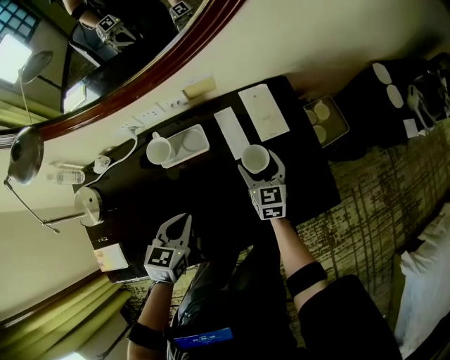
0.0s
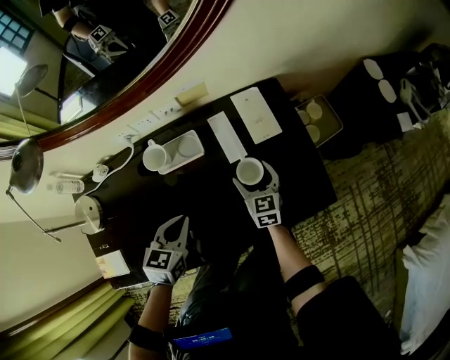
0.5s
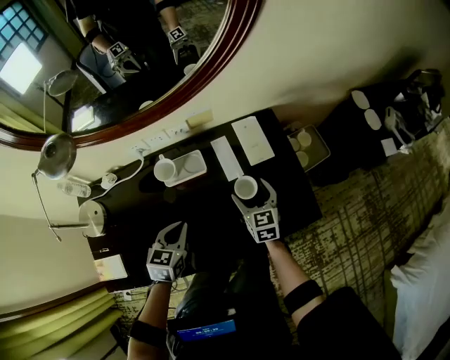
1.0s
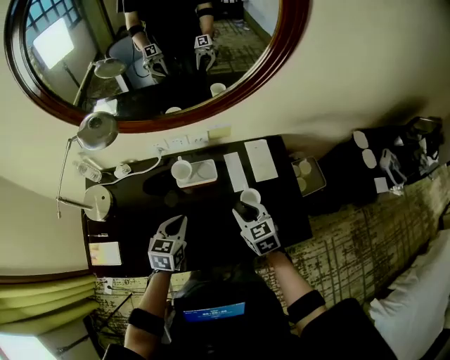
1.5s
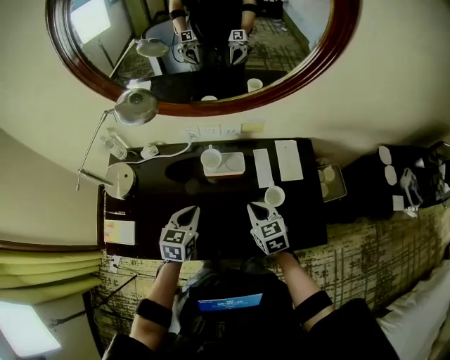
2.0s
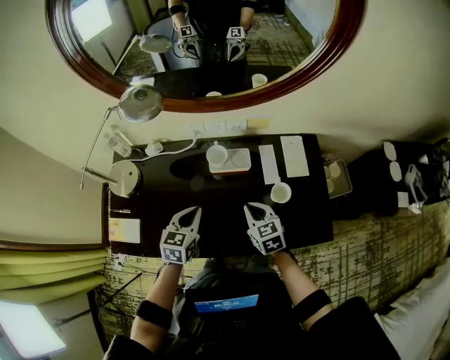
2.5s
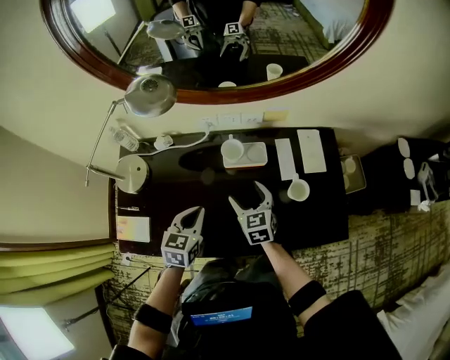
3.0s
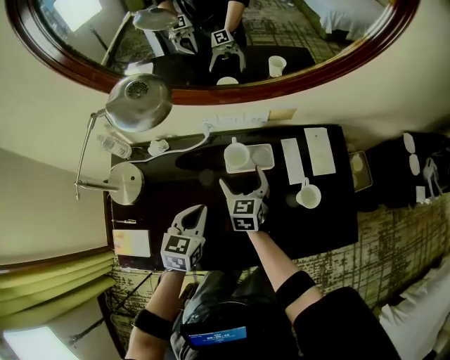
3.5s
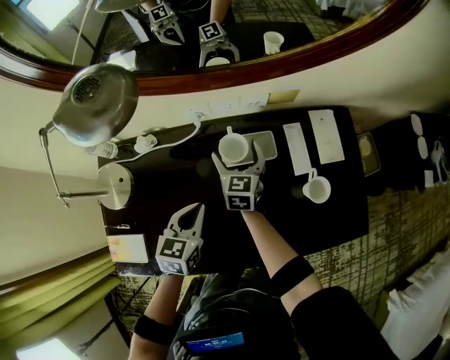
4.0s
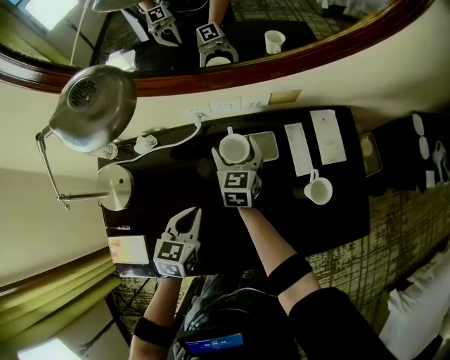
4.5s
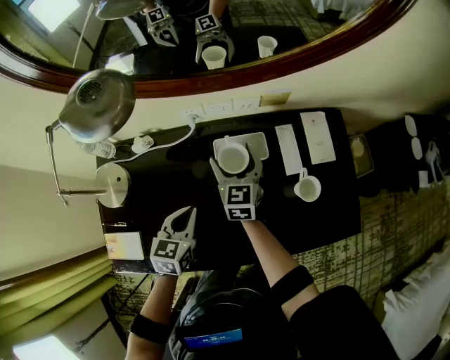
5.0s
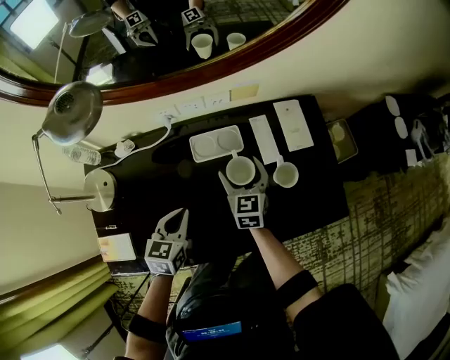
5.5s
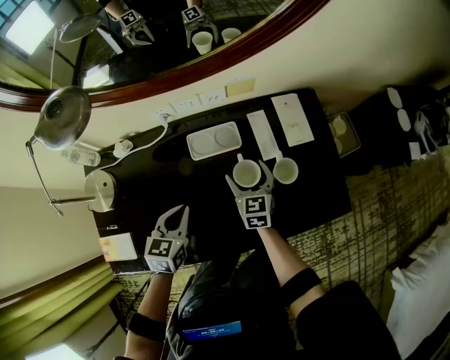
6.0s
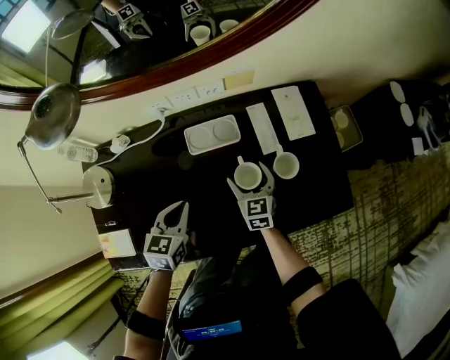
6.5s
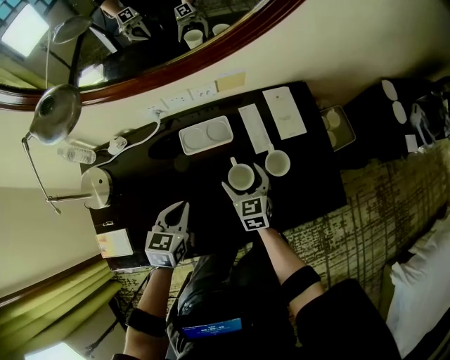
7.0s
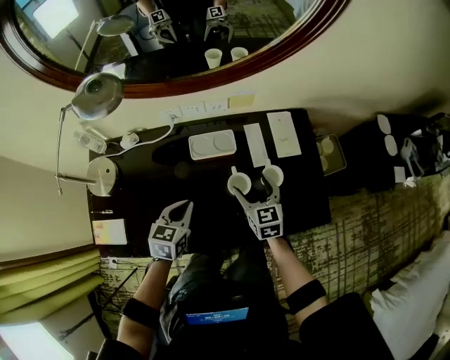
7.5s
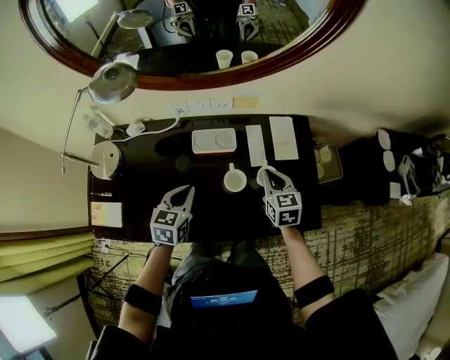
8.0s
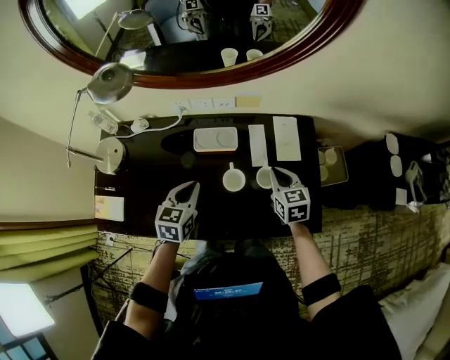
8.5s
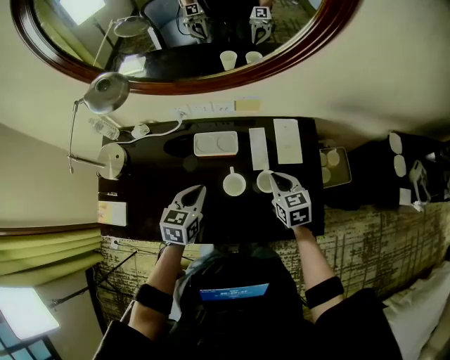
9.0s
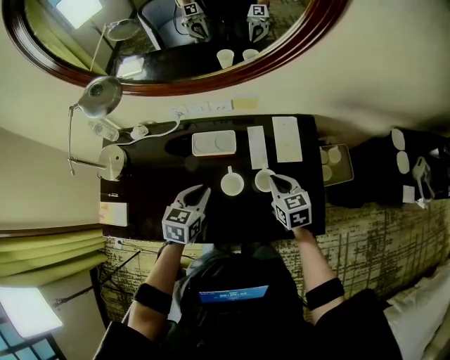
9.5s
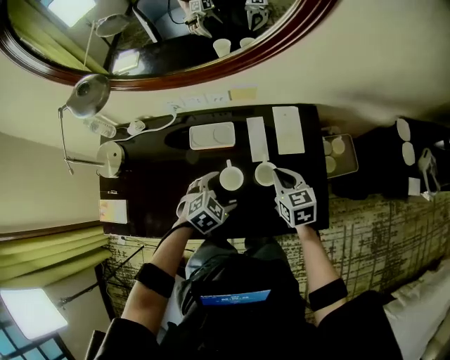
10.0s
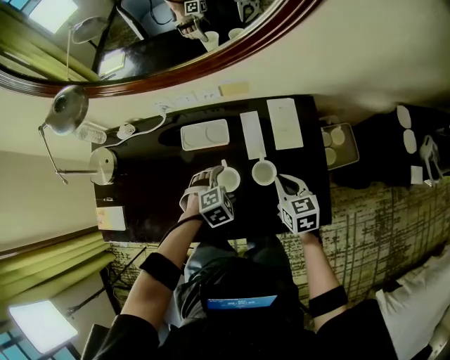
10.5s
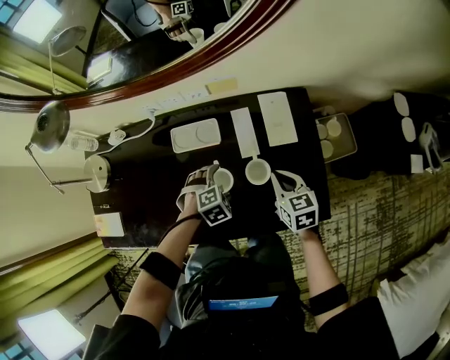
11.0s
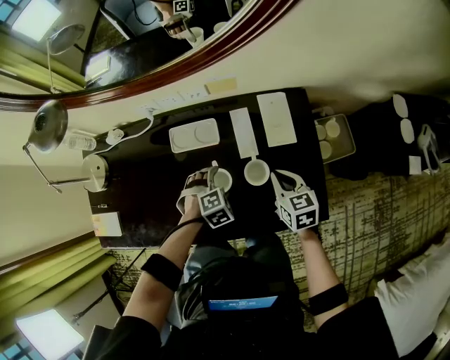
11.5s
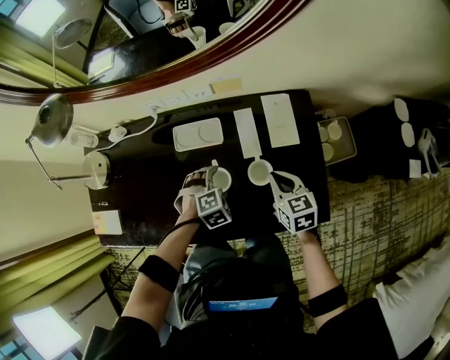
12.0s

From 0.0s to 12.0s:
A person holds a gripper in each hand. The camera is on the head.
From 0.0s to 2.0s: The right gripper heads to the left, backward and upward, covering about 20 cm, swivels approximately 30 degrees, and closes. Meanwhile the left gripper is displaced to the left and upward by some 10 cm.
From 2.0s to 4.0s: The right gripper shifts approximately 25 cm forward, to the left and downward, swivels about 30 degrees, and opens up. Meanwhile the left gripper heads downward, to the left and forward, covering about 10 cm.
From 4.0s to 6.0s: The right gripper goes approximately 15 cm to the right and backward. The left gripper moves to the right, roughly 5 cm.
From 6.0s to 8.0s: The left gripper is displaced to the right by about 5 cm; the right gripper shifts approximately 15 cm to the right and upward, and closes its fingers.
From 8.0s to 10.0s: The right gripper ends up approximately 5 cm from where it was; the left gripper travels to the right and downward by roughly 15 cm, rotates about 40 degrees, and opens up.
From 10.0s to 12.0s: The left gripper goes approximately 10 cm downward, and turns by about 30 degrees.

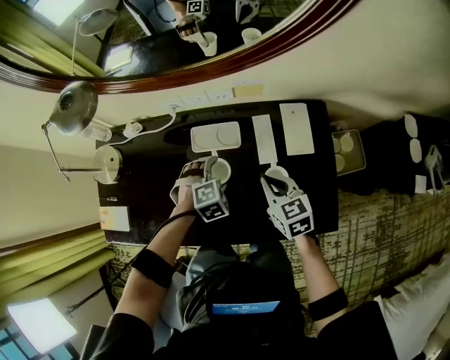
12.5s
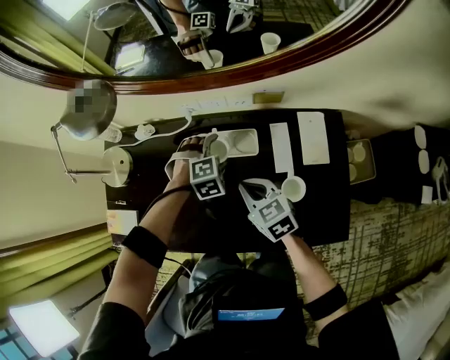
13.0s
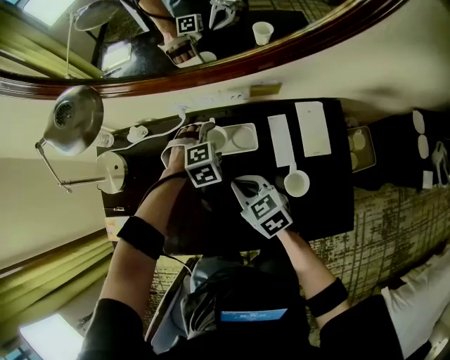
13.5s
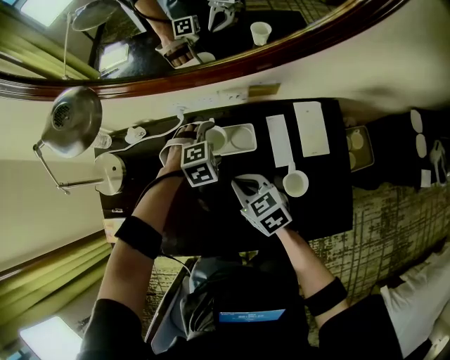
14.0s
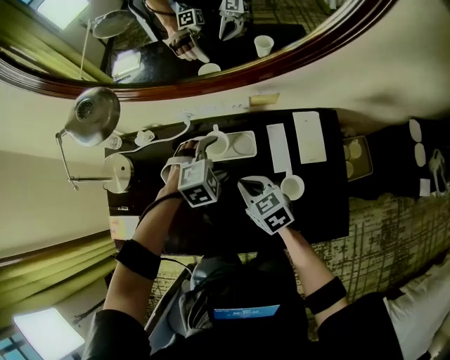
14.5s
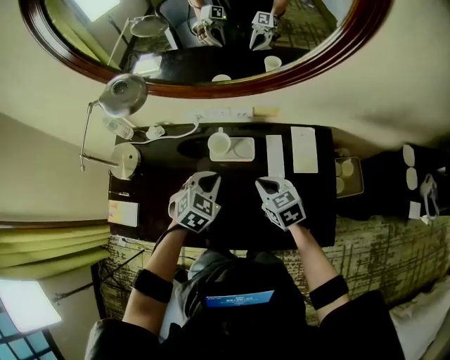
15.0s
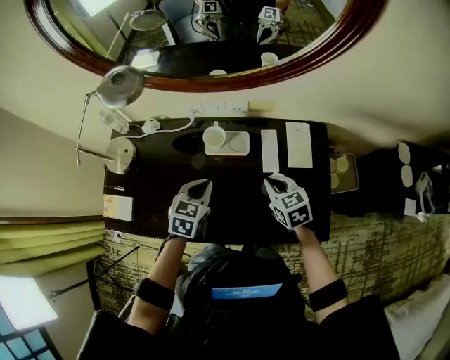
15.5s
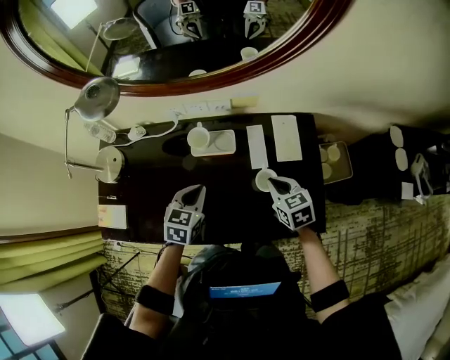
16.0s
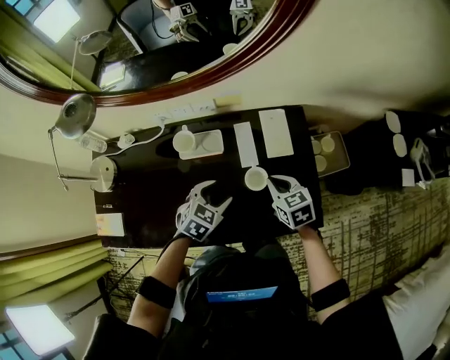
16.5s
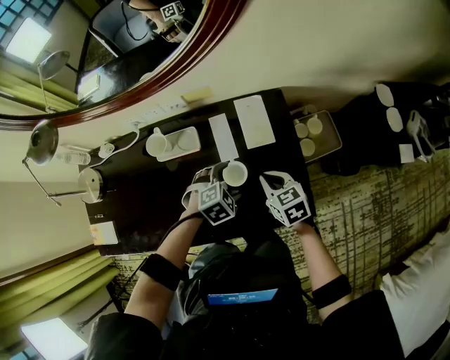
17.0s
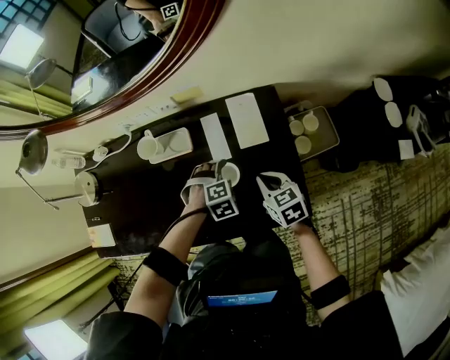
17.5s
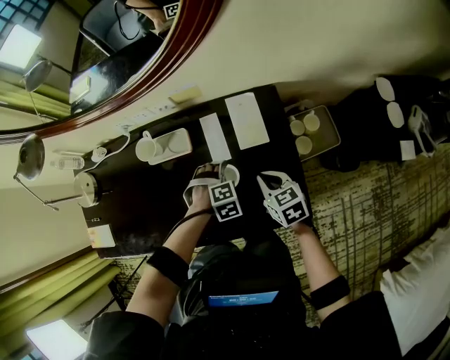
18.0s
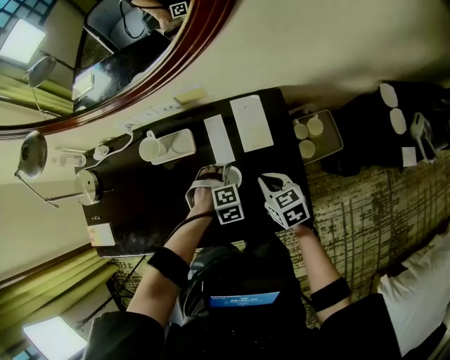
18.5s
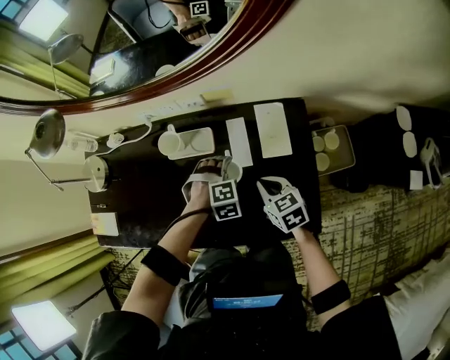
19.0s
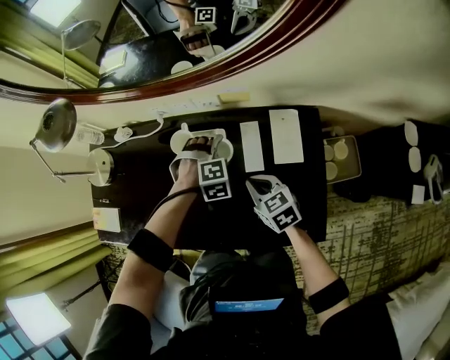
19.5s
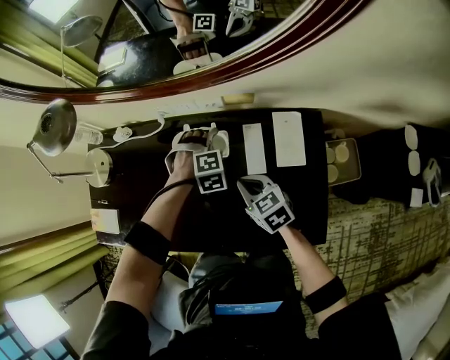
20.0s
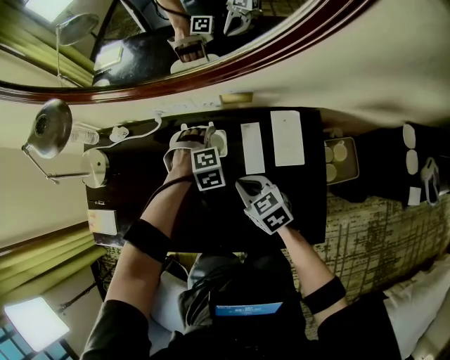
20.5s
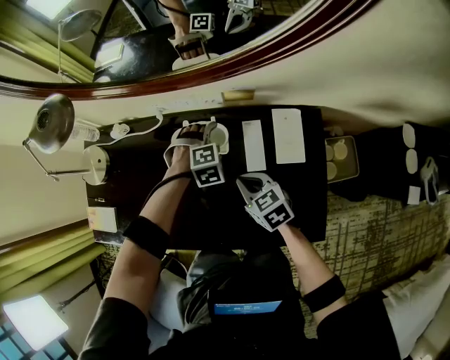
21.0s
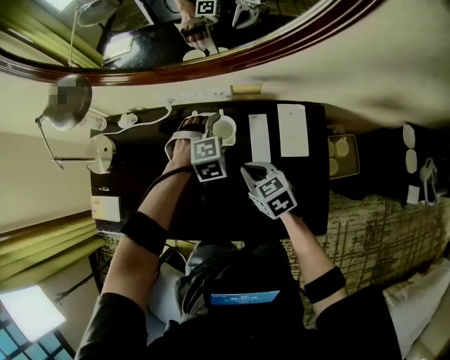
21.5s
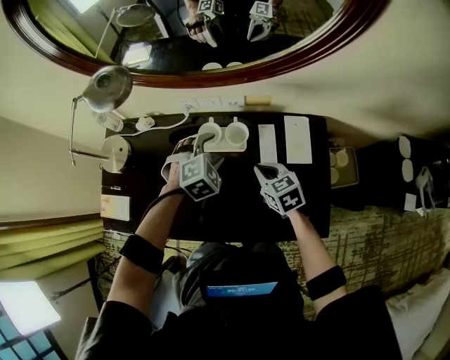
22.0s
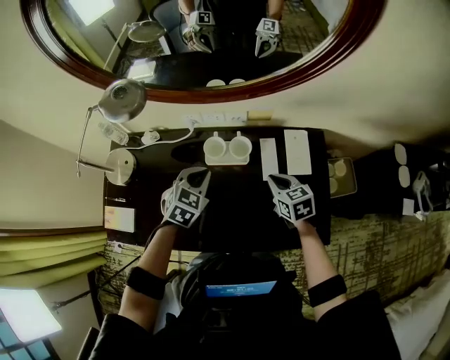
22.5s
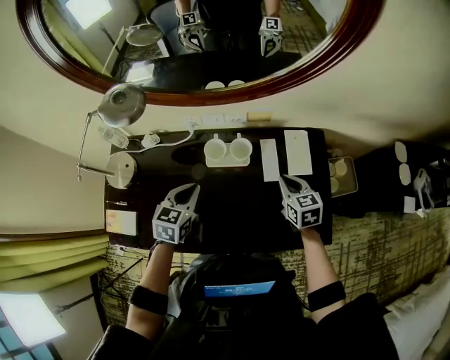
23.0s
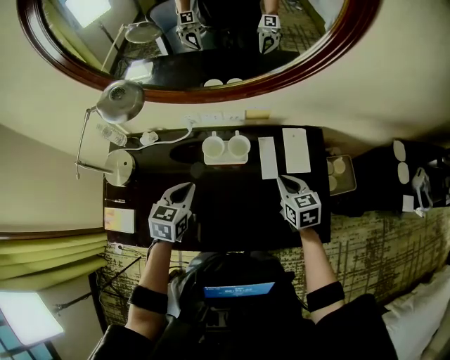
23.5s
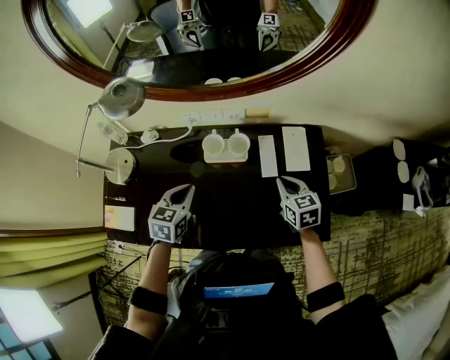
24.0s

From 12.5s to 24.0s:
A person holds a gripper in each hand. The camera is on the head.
From 12.5s to 14.5s: The left gripper heads forward, covering approximately 5 cm, while the right gripper heads to the left, covering about 10 cm.
From 14.5s to 16.5s: The right gripper travels to the right by some 20 cm. Meanwhile the left gripper shifts roughly 15 cm backward and to the right, turns by approximately 40 degrees, and closes up.
From 16.5s to 18.5s: The left gripper moves downward, some 15 cm, and rolls clockwise, seen from behind, by about 40 degrees; the right gripper shifts by approximately 10 cm.
From 18.5s to 20.0s: The right gripper changes place by roughly 20 cm. The left gripper ends up roughly 20 cm from where it was.
From 20.0s to 22.0s: The left gripper moves upward and to the left, some 15 cm, and swivels some 30 degrees.
From 22.0s to 24.0s: The right gripper shifts about 5 cm to the right. The left gripper moves to the left and backward, roughly 15 cm, rolls counterclockwise, seen from behind, by roughly 50 degrees, and closes up.

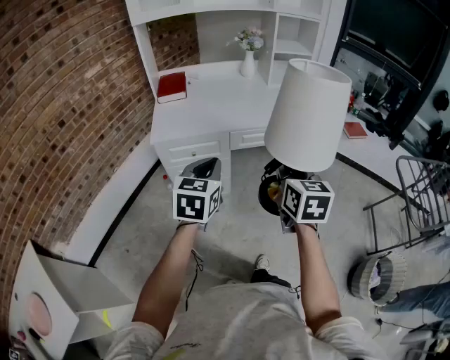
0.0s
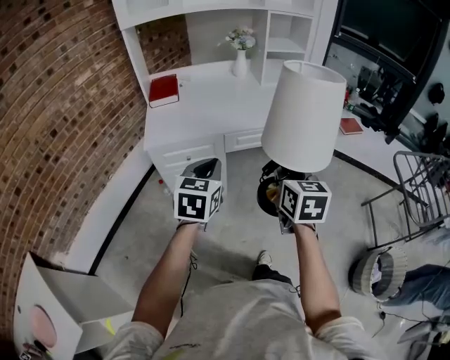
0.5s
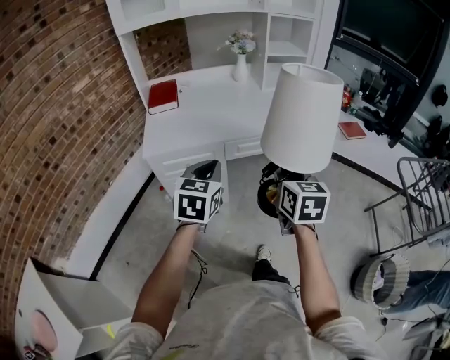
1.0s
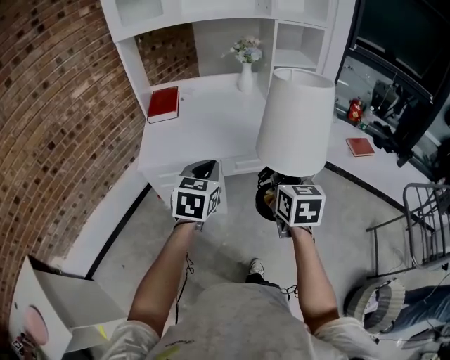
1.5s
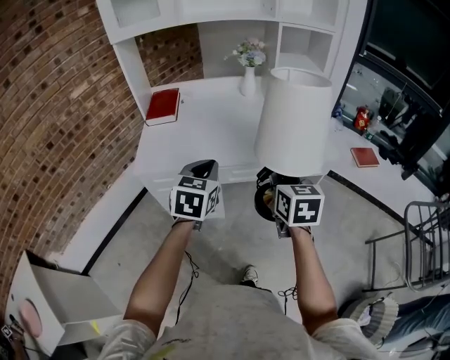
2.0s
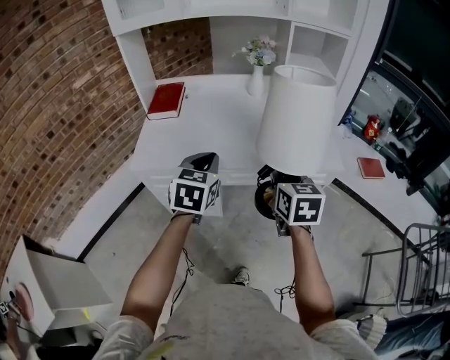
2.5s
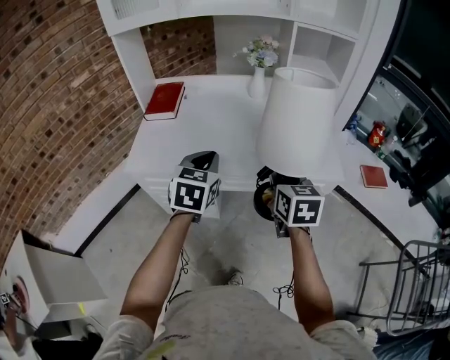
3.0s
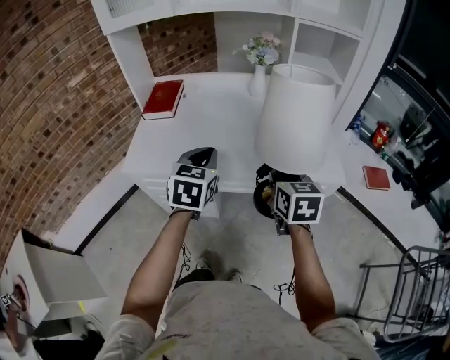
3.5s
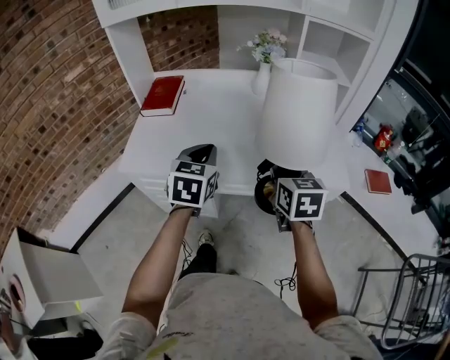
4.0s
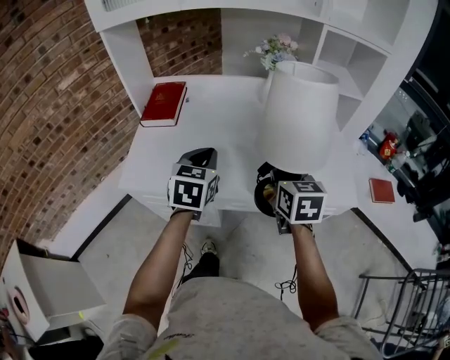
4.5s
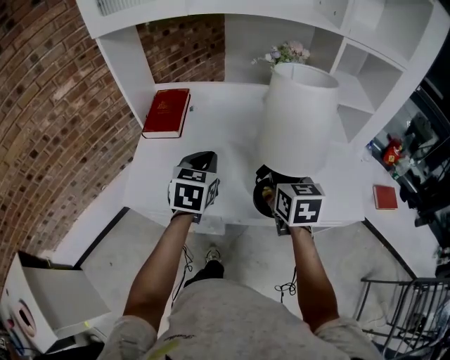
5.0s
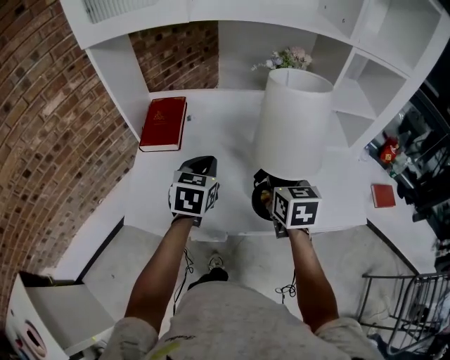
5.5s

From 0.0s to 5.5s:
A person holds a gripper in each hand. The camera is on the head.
From 0.0s to 2.0s: The two grippers go about 20 cm forward.
From 2.0s to 3.5s: The left gripper heads forward, covering approximately 10 cm; the right gripper moves forward and to the right, about 15 cm.
From 3.5s to 5.5s: Both grippers move forward and to the left, roughly 25 cm.
